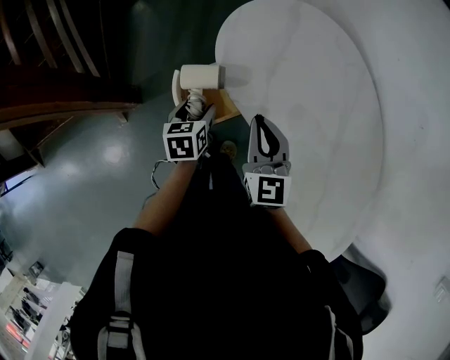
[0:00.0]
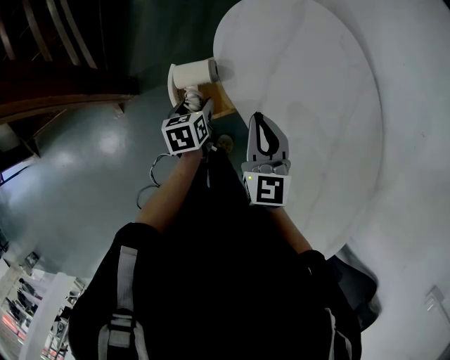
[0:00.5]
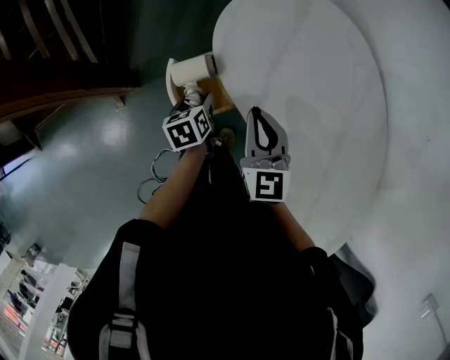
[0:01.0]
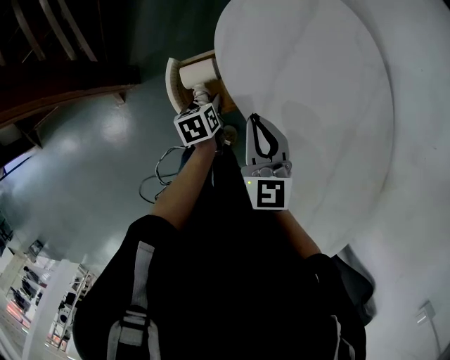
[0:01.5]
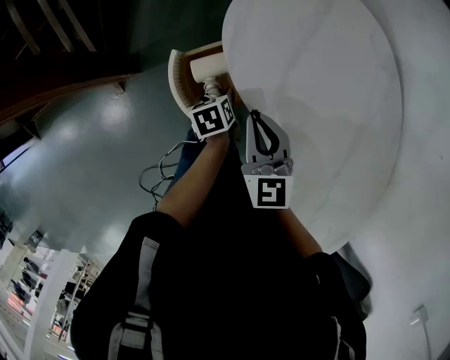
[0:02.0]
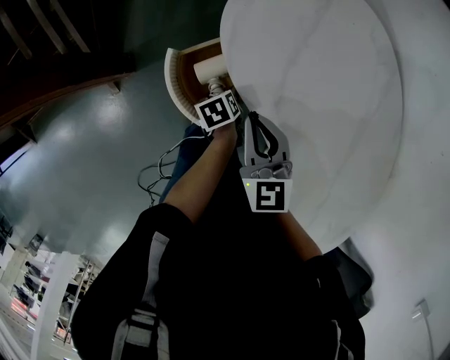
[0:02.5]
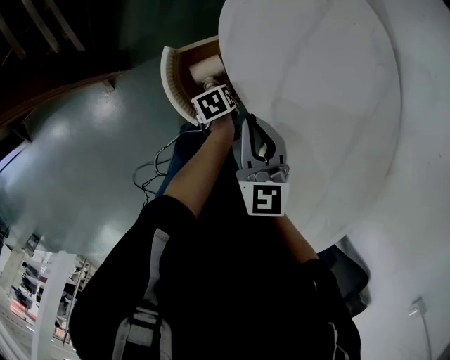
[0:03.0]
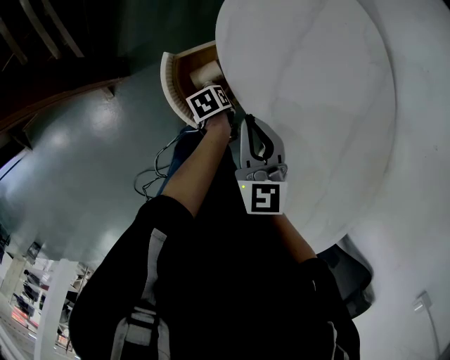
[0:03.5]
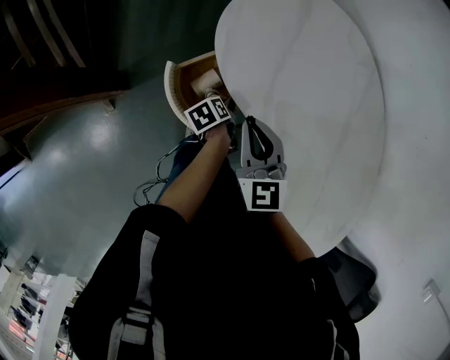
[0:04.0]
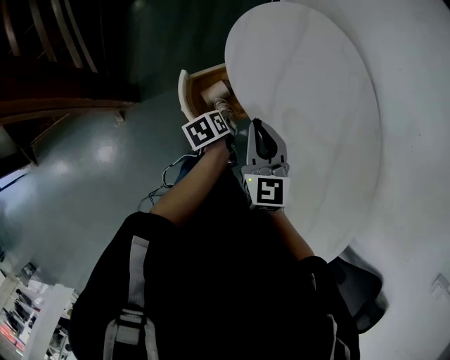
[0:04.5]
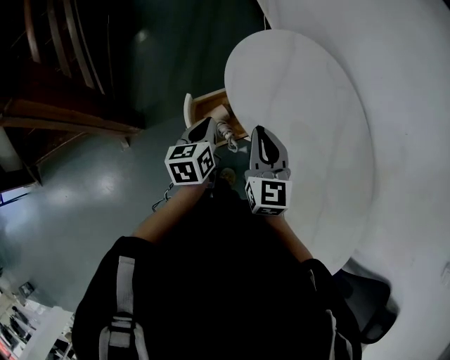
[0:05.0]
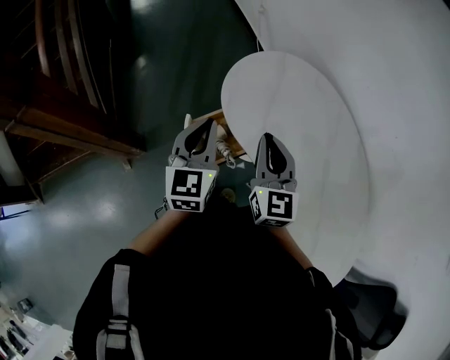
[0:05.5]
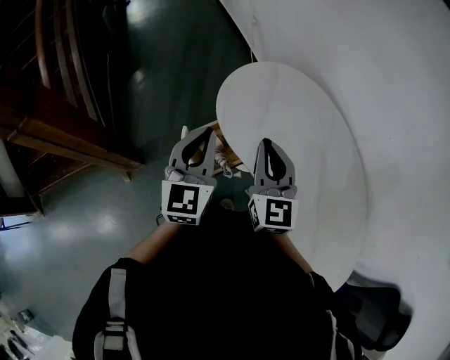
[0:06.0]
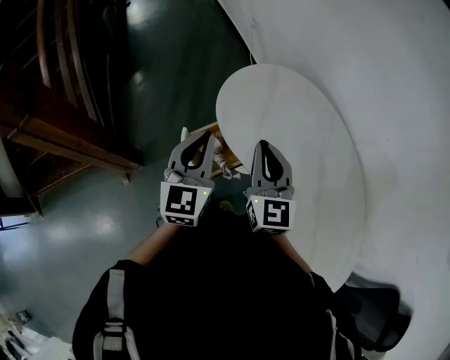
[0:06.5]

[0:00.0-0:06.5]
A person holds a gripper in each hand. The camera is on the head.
0:00.0 to 0:02.0: The left gripper goes some 10 cm downward, and swivels about 30 degrees. The right gripper is displaced downward by roughly 5 cm.
0:02.0 to 0:04.5: The grippers both shift upward by approximately 5 cm.
0:04.5 to 0:06.5: The left gripper is displaced upward by about 35 cm, points its fingers some 50 degrees further upward, and closes its fingers. Meanwhile the right gripper travels upward by about 15 cm.

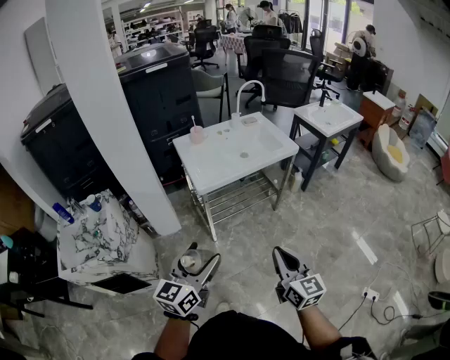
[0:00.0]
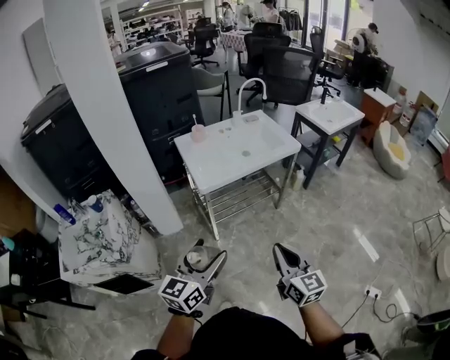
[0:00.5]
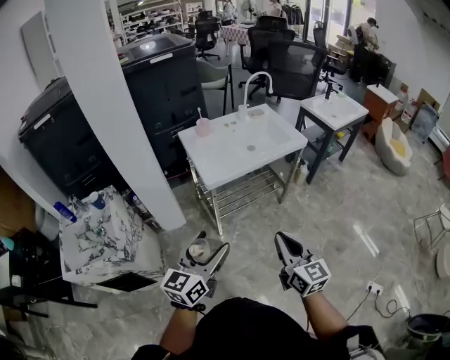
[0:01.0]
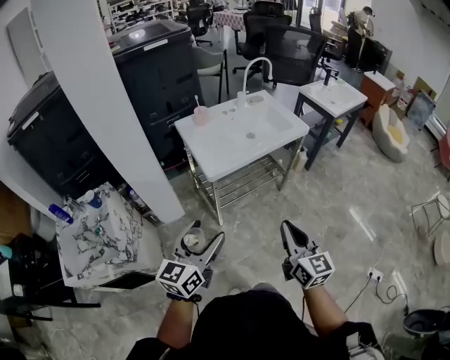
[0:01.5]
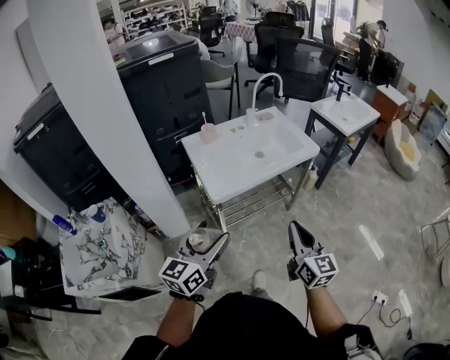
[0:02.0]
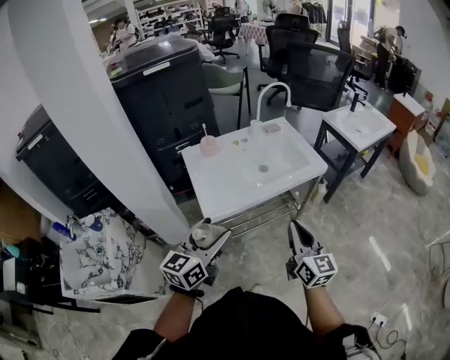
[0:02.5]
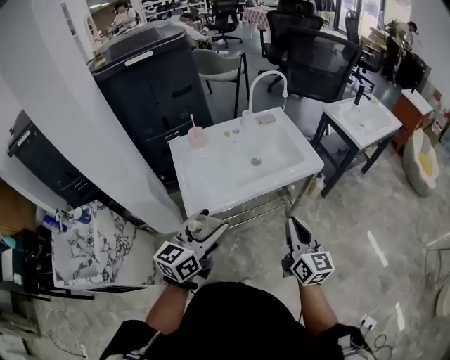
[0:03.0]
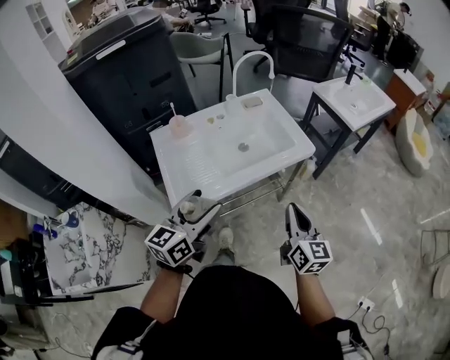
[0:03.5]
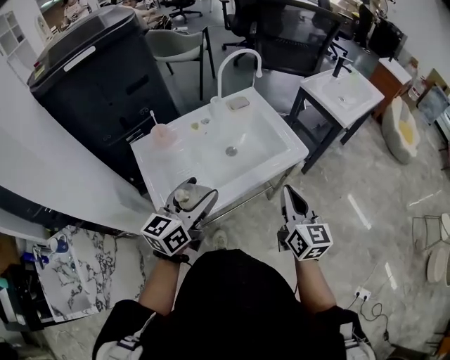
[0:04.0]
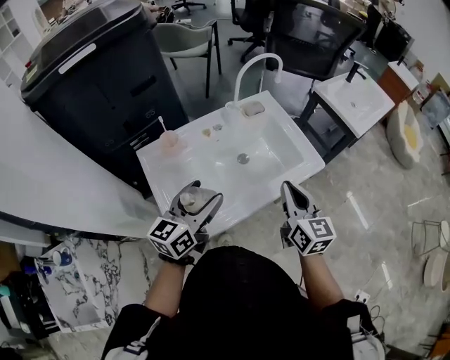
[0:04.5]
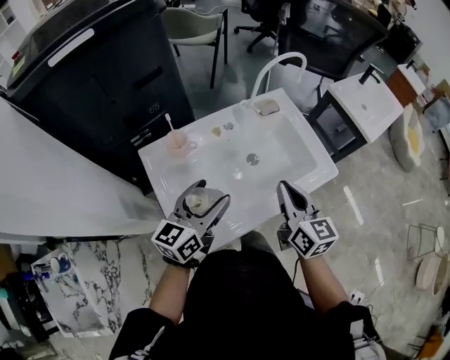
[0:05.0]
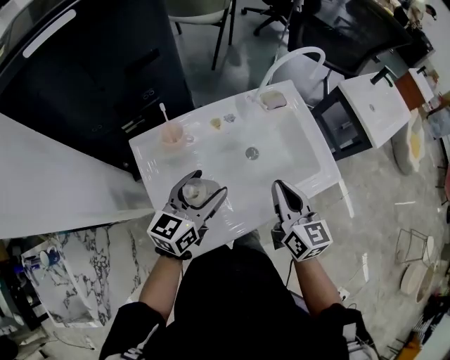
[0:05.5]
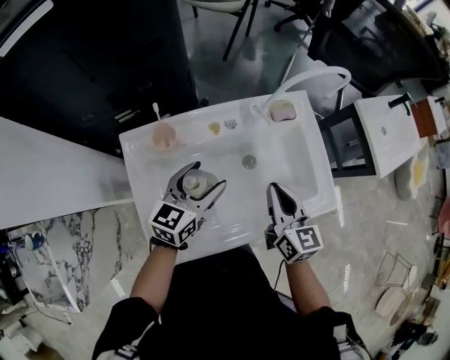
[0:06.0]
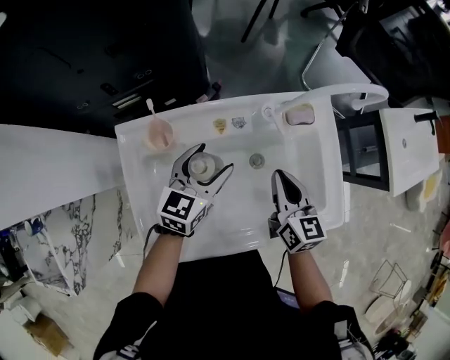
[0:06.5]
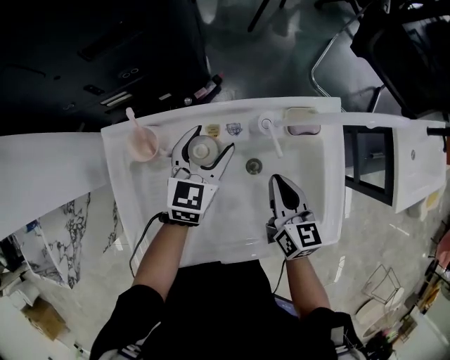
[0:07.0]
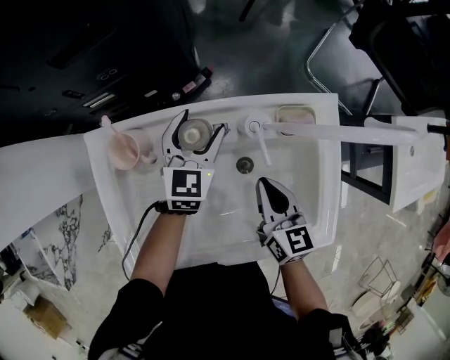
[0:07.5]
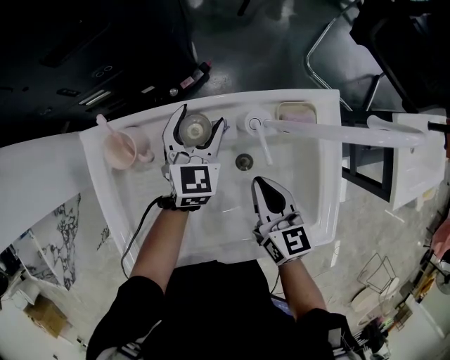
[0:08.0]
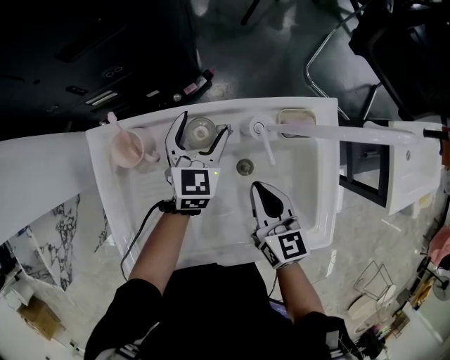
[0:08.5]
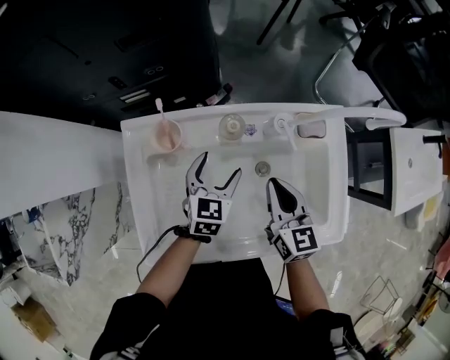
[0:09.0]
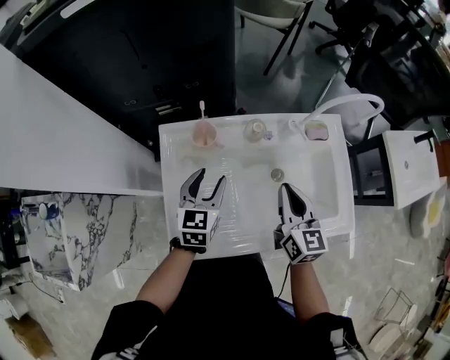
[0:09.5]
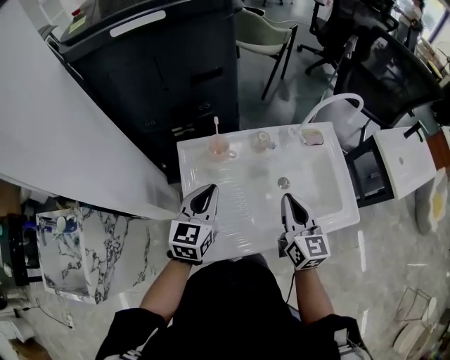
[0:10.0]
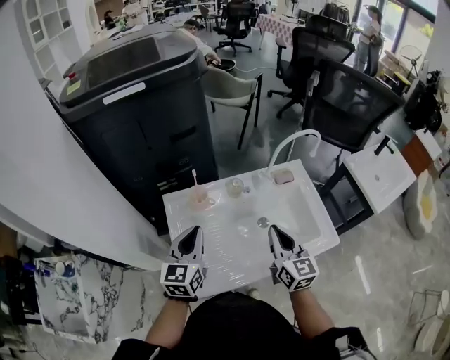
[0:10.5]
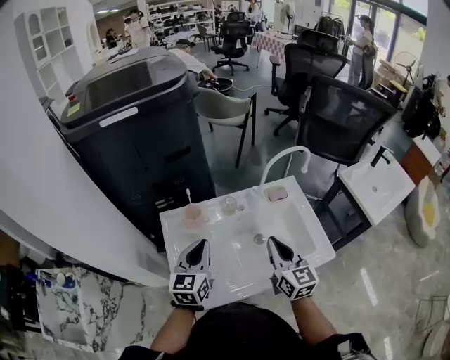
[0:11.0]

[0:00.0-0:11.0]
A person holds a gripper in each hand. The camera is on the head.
0:00.0 to 0:02.0: Both grippers move forward, about 15 cm.
0:02.0 to 0:03.5: Both grippers travel together forward and to the right, about 25 cm.
0:03.5 to 0:05.5: Both grippers travel together forward and to the left, some 25 cm.
0:05.5 to 0:07.5: The left gripper shifts by about 25 cm, and swivels roughly 40 degrees. The right gripper shifts by some 20 cm, and rotates some 20 degrees.
0:07.5 to 0:09.0: The right gripper moves roughly 5 cm; the left gripper moves backward, some 10 cm.
0:09.0 to 0:11.0: The right gripper is displaced upward and backward by approximately 15 cm. The left gripper shifts approximately 25 cm upward, backward and to the left, changes its angle by approximately 20 degrees, and closes up.

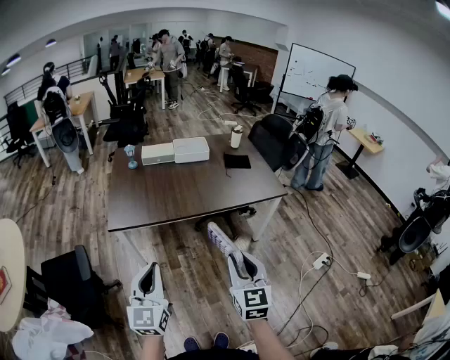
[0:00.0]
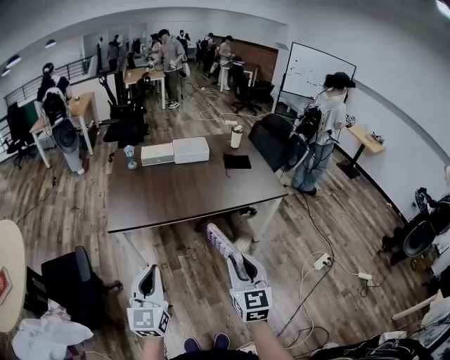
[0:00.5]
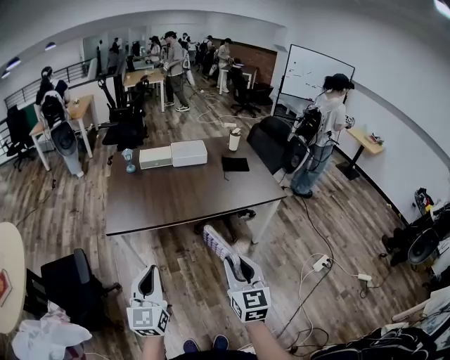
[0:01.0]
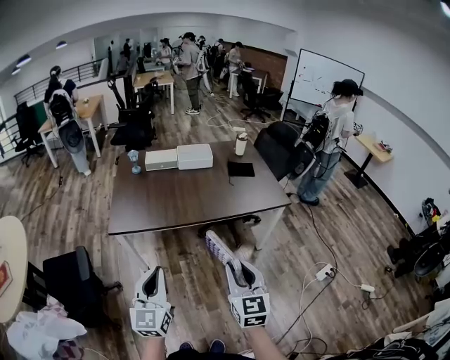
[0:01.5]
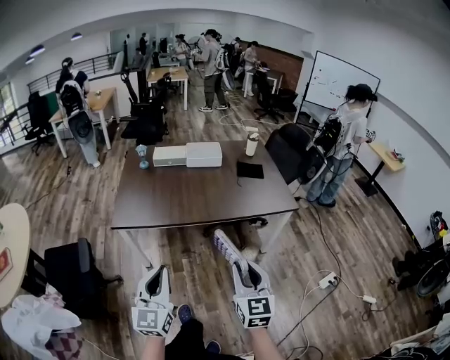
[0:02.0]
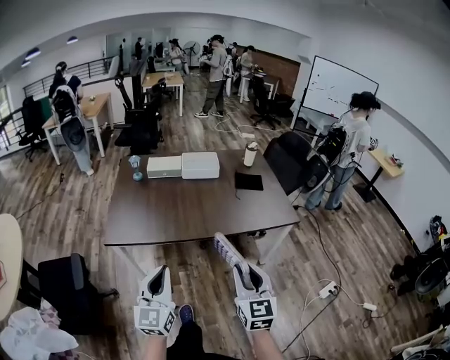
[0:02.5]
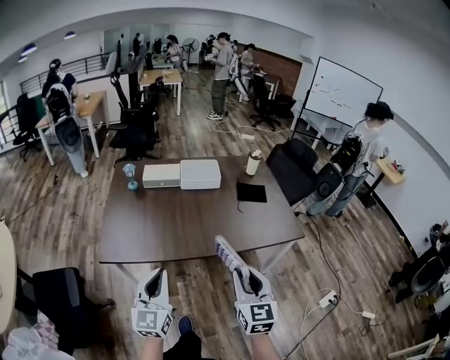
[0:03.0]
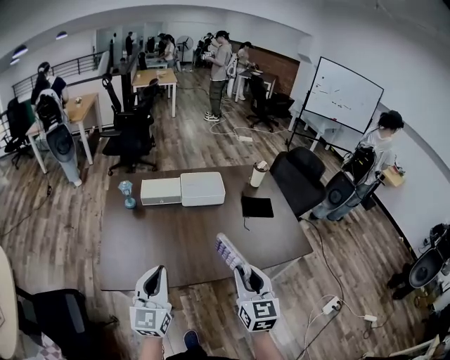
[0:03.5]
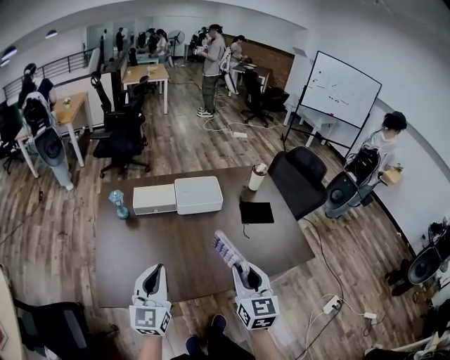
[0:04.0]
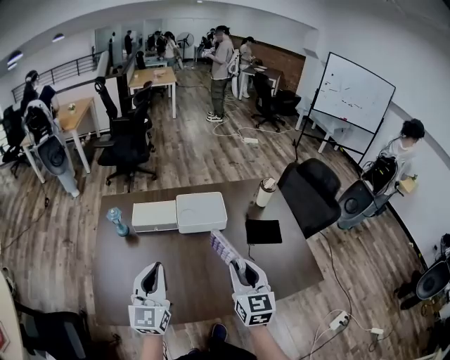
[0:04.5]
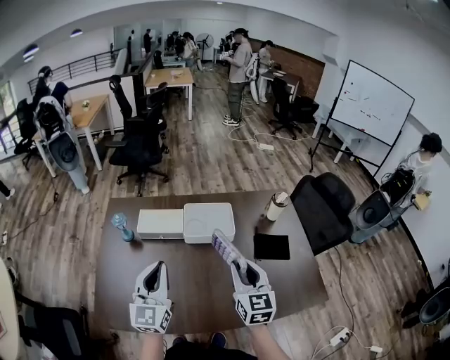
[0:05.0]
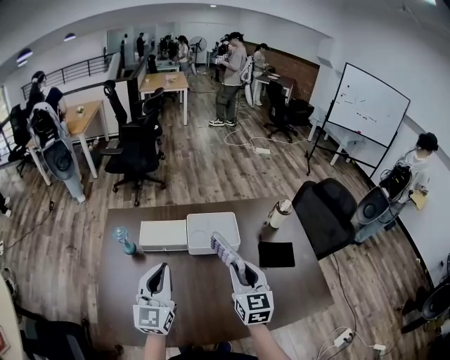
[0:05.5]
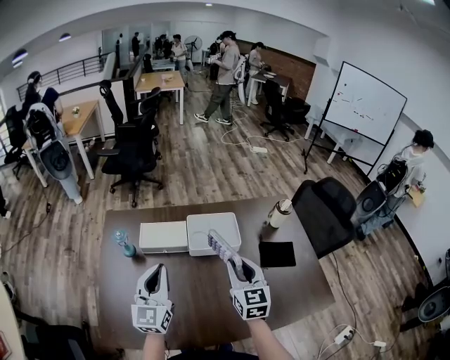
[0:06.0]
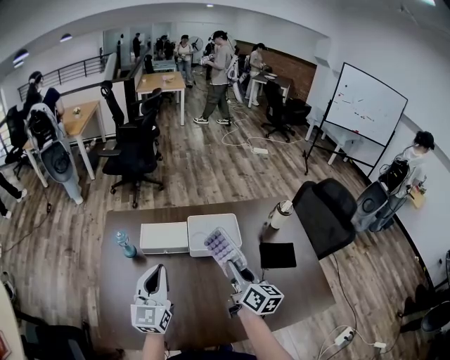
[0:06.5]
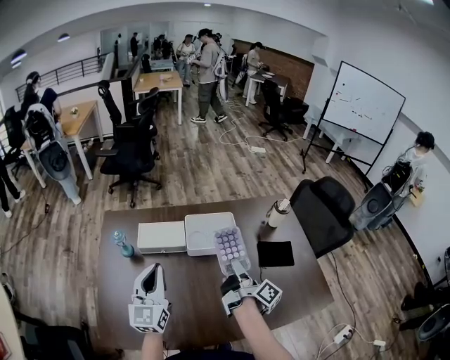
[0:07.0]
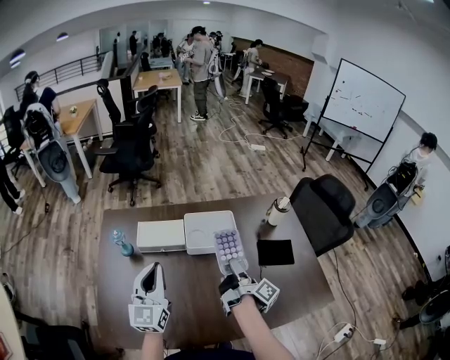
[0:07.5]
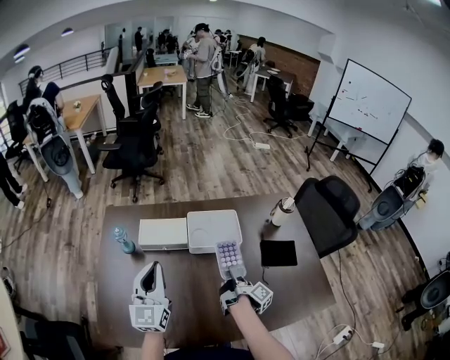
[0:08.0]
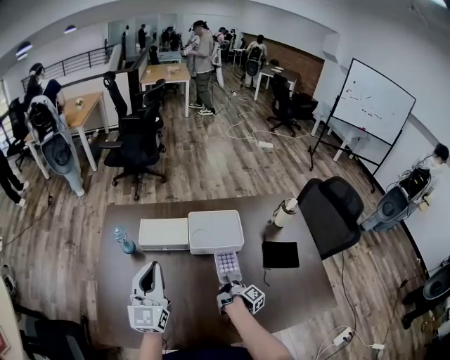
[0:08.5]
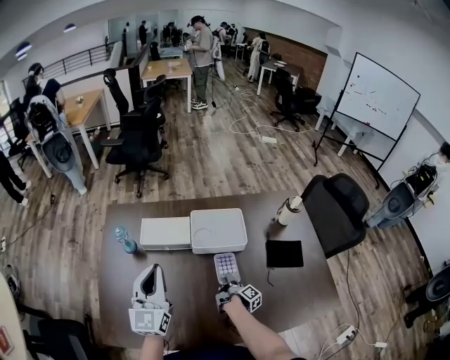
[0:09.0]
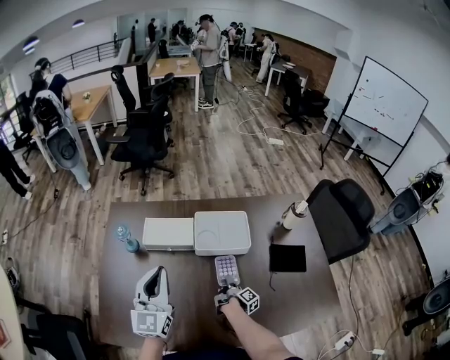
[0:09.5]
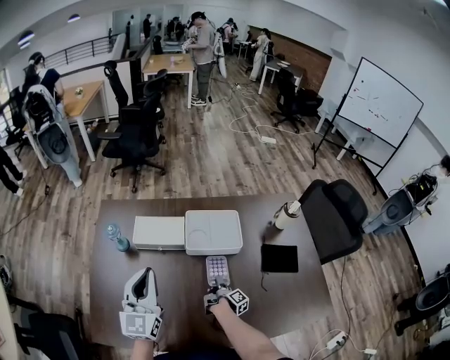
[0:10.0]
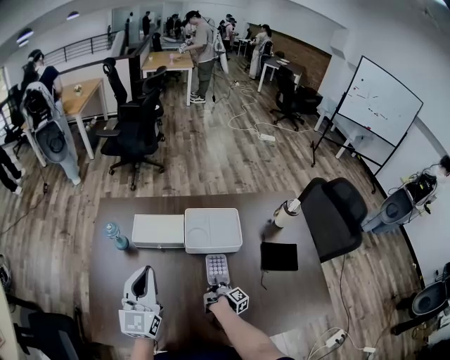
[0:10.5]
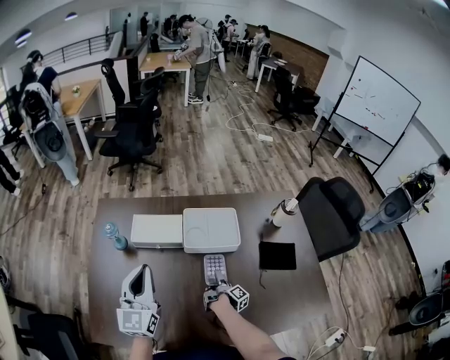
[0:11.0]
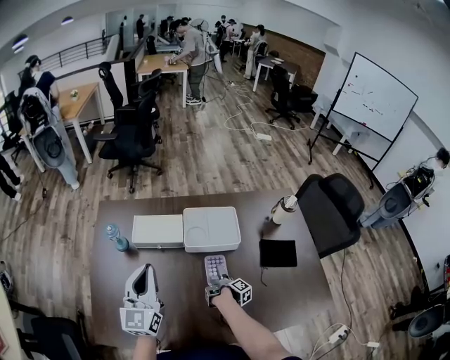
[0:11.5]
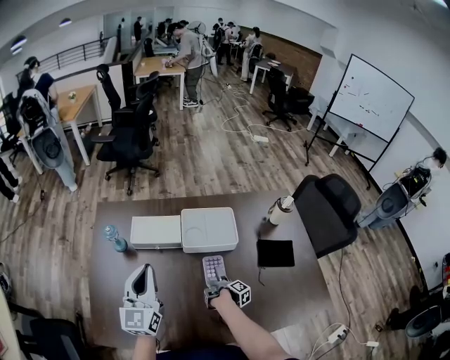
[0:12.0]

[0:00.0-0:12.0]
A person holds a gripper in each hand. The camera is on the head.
0:00.0 to 0:02.0: The two grippers go roughly 5 cm to the right.
0:02.0 to 0:04.0: Both grippers are carried forward, some 50 cm.
0:04.0 to 0:06.0: The grippers both shift forward by approximately 30 cm.
0:06.0 to 0:08.0: The right gripper travels downward by some 15 cm, and rotates around the line of its fingers by about 100 degrees, clockwise from behind.
0:08.0 to 0:10.0: The right gripper travels downward by about 20 cm.
0:10.0 to 0:12.0: The right gripper opens its fingers.
